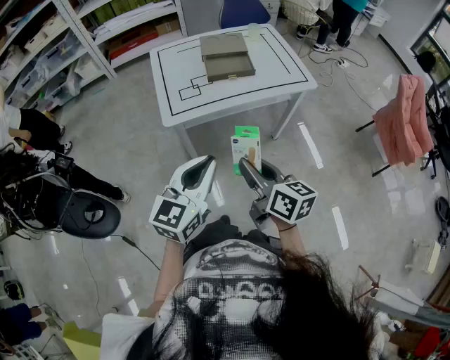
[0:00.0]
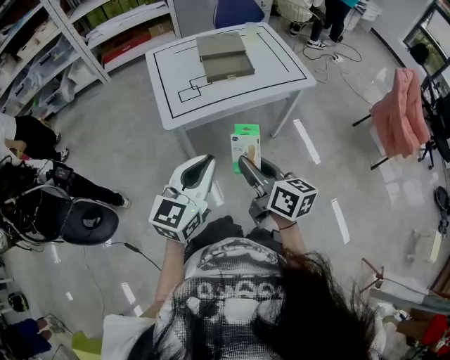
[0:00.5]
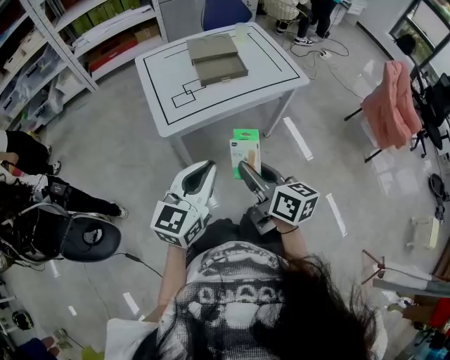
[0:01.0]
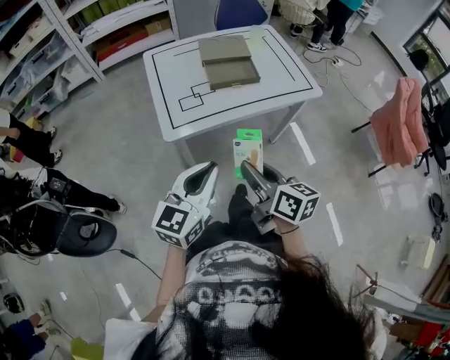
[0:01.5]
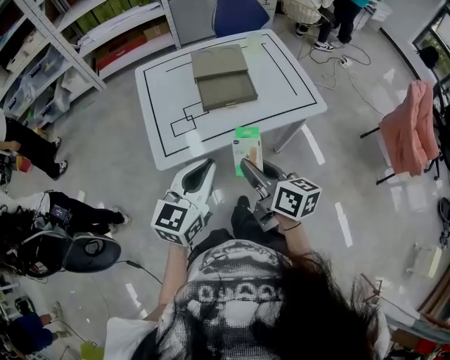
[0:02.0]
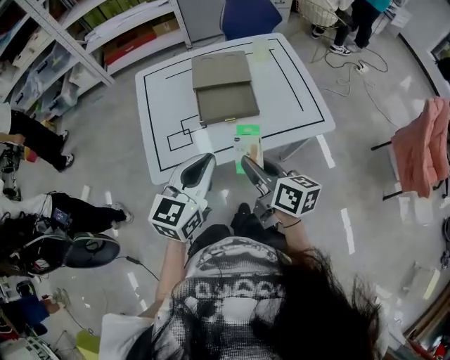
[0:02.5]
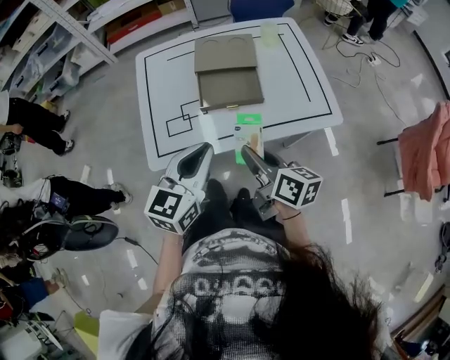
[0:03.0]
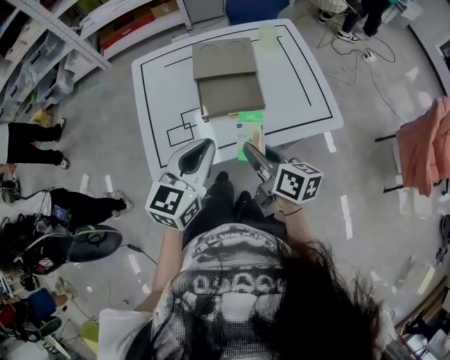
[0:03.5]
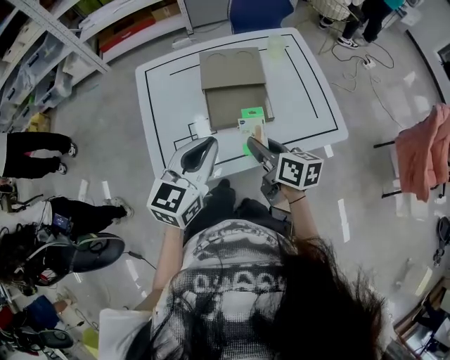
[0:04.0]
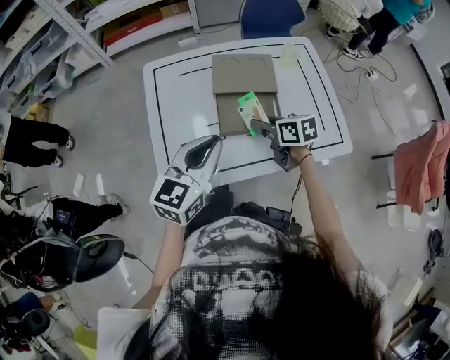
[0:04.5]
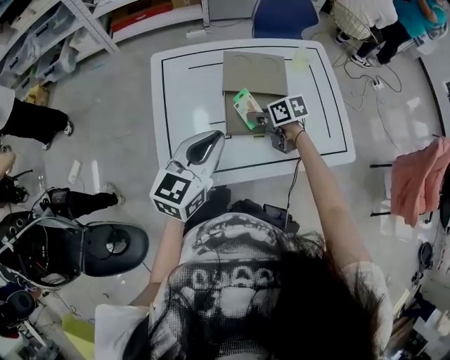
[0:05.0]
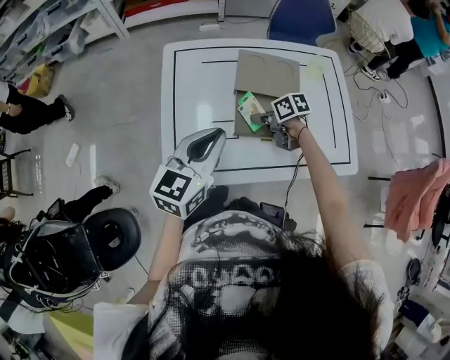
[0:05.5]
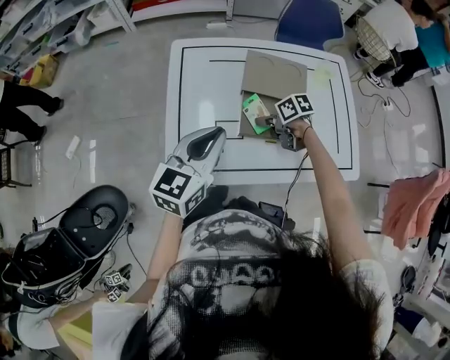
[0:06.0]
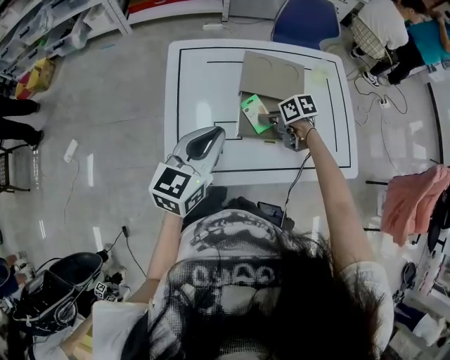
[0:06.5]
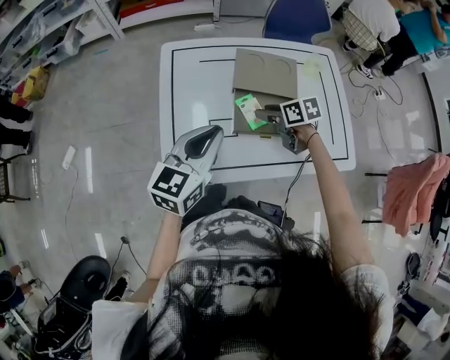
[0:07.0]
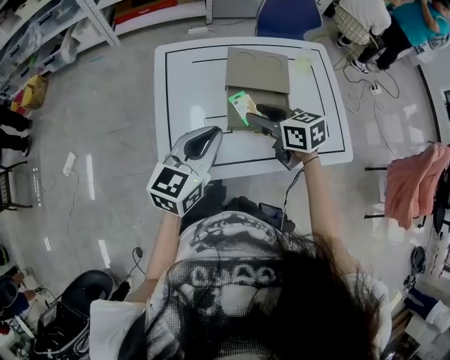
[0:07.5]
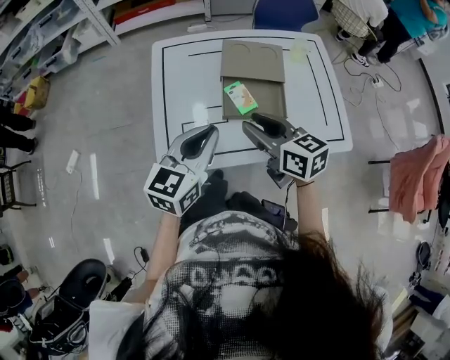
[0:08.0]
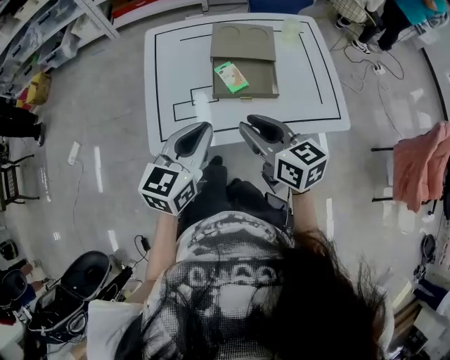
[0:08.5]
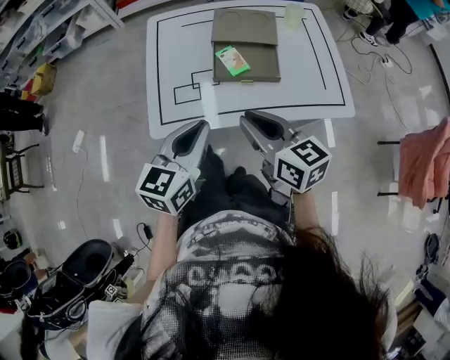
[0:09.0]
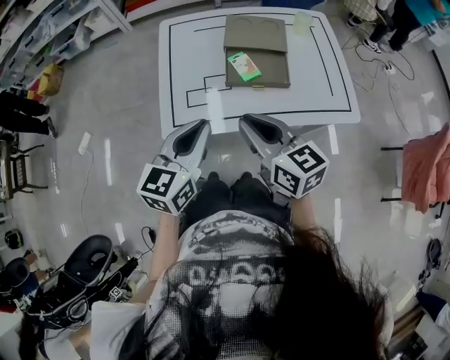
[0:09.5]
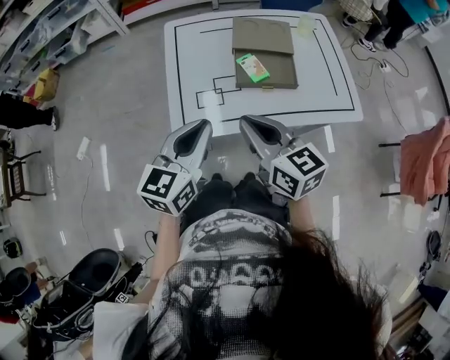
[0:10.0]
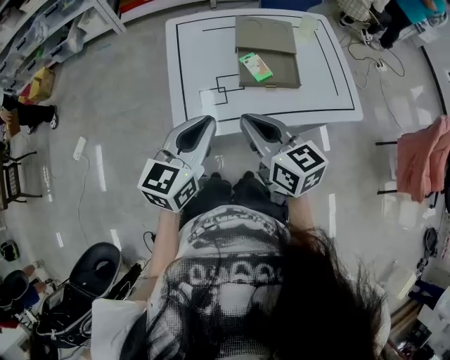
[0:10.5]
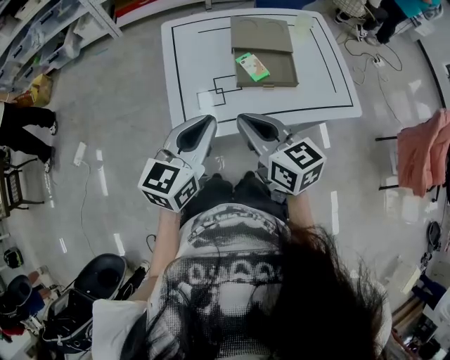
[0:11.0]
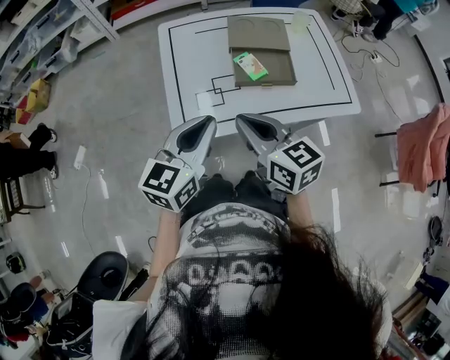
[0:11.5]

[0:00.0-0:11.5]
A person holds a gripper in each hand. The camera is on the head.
0:00.0 to 0:02.0: The grippers both shift forward by about 25 cm.
0:02.0 to 0:04.0: The grippers both shift forward by about 20 cm.
0:04.0 to 0:06.0: The left gripper moves about 10 cm; the right gripper shifts by approximately 25 cm, and changes its angle by about 50 degrees.
0:06.0 to 0:07.5: The right gripper moves upward, approximately 15 cm, turns by roughly 40 degrees, and opens its fingers.
0:07.5 to 0:09.5: The right gripper shifts roughly 20 cm backward and upward, and closes up. Meanwhile the left gripper moves backward, about 15 cm.
0:09.5 to 0:11.5: The grippers both shift to the left by roughly 5 cm.

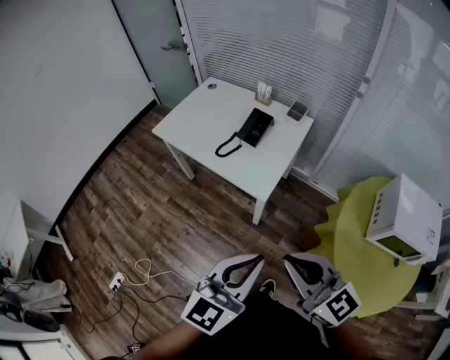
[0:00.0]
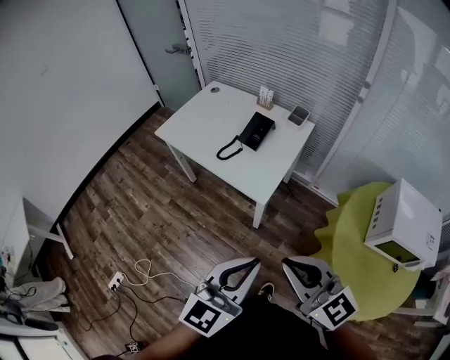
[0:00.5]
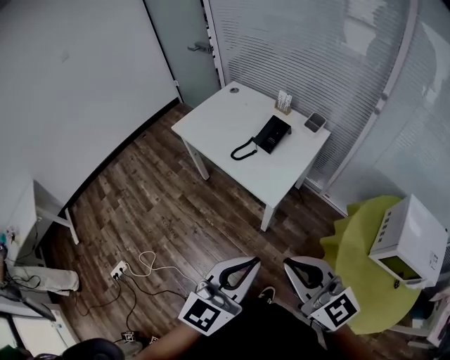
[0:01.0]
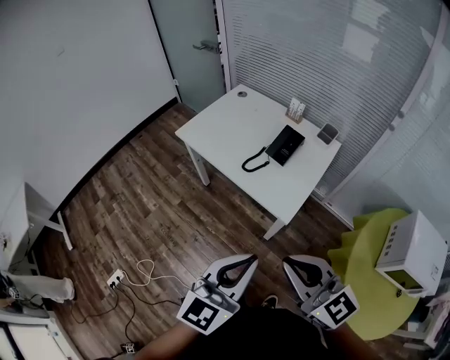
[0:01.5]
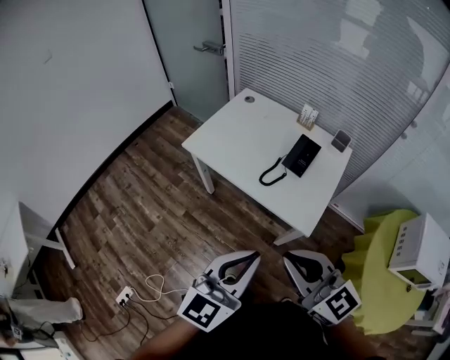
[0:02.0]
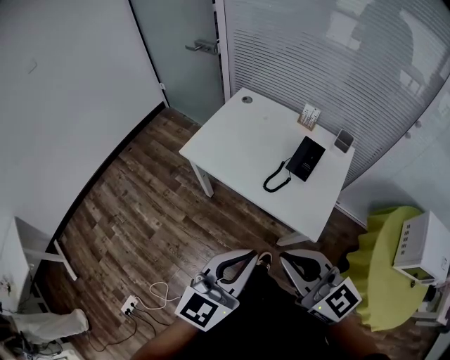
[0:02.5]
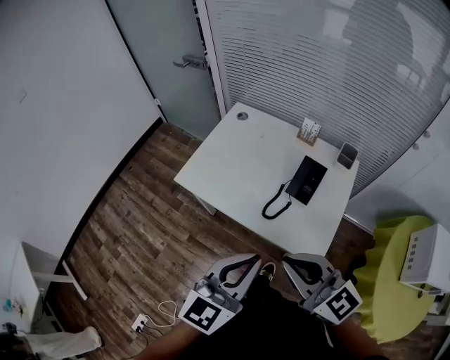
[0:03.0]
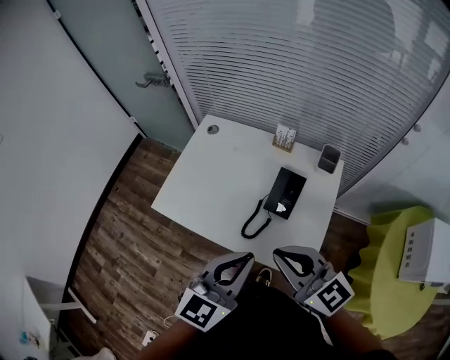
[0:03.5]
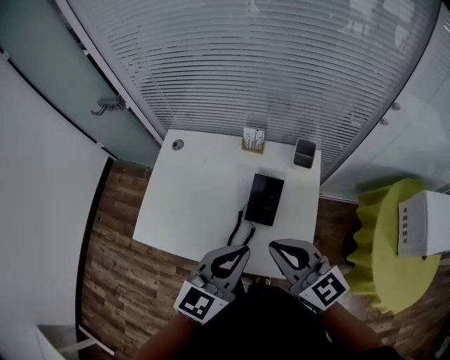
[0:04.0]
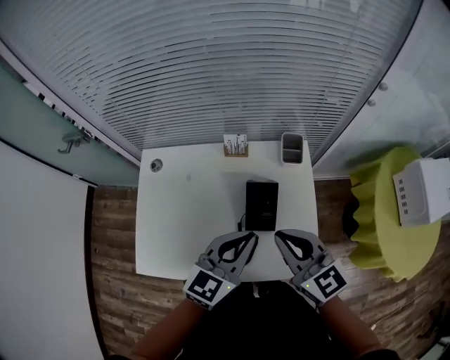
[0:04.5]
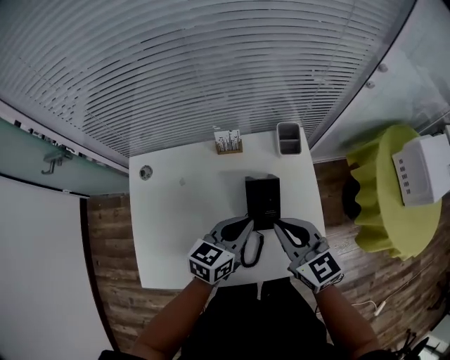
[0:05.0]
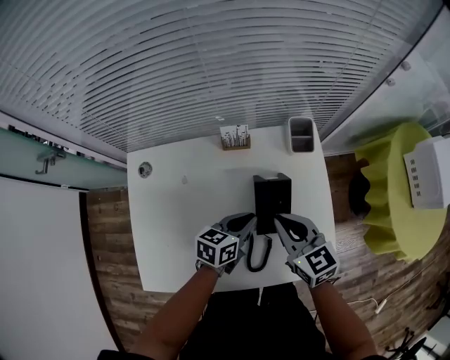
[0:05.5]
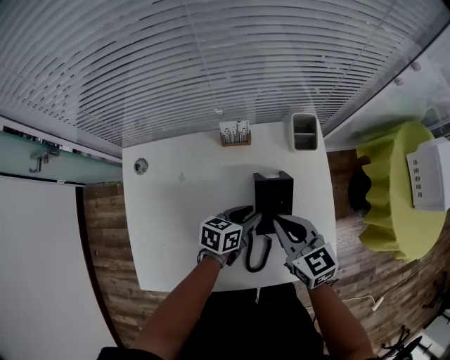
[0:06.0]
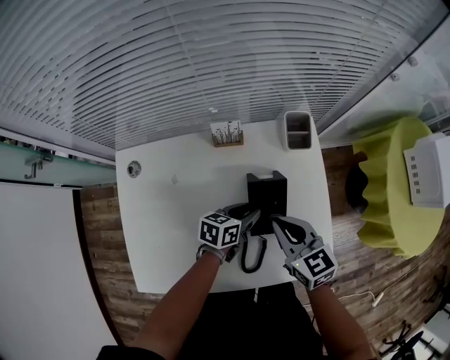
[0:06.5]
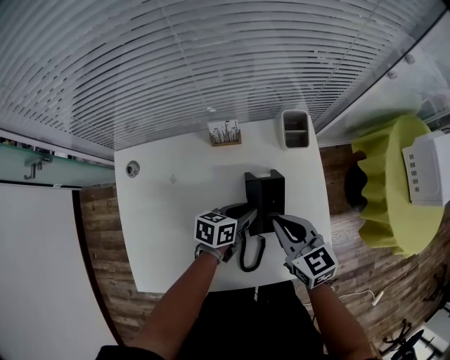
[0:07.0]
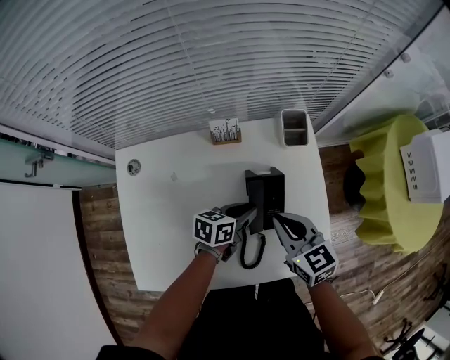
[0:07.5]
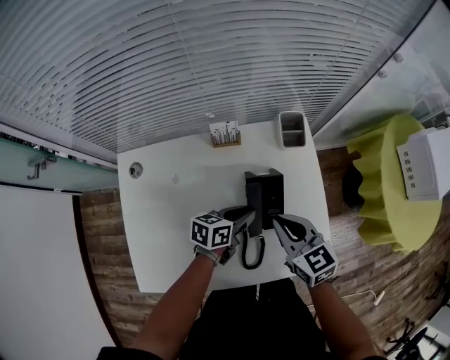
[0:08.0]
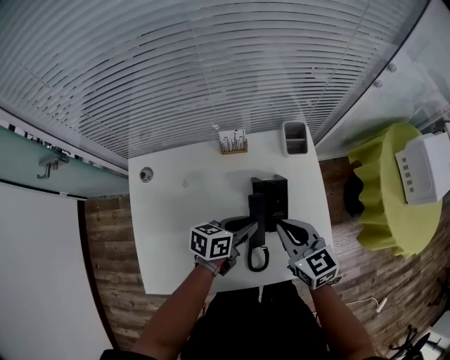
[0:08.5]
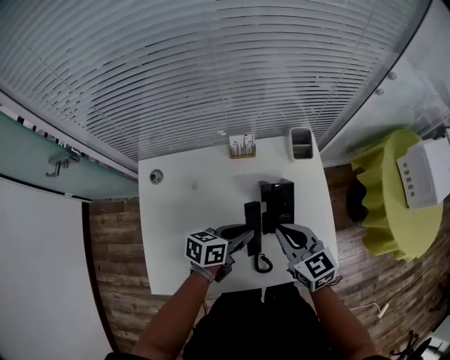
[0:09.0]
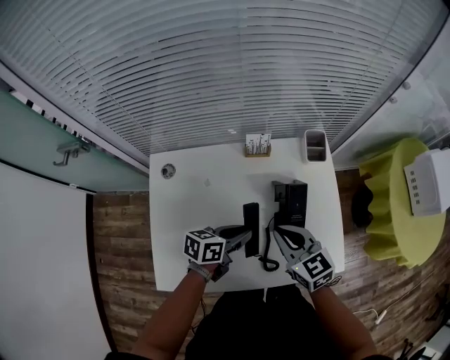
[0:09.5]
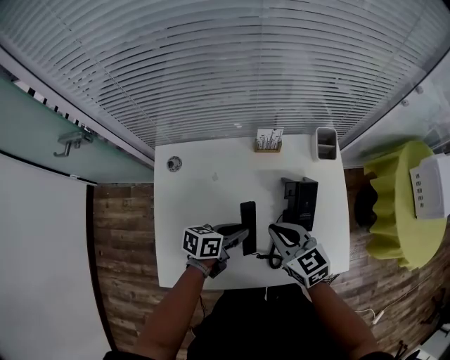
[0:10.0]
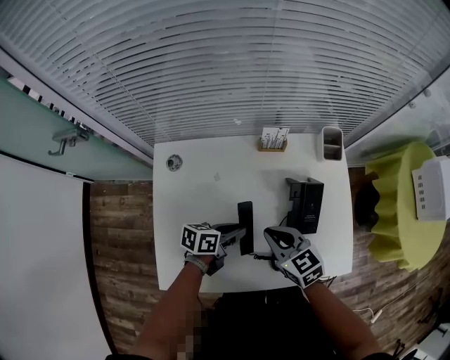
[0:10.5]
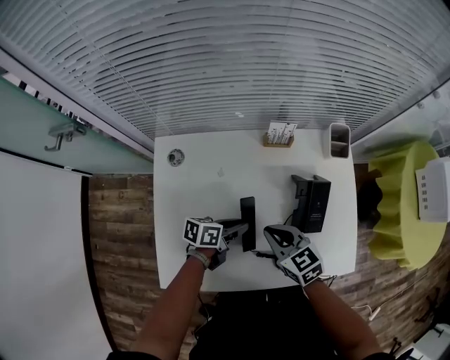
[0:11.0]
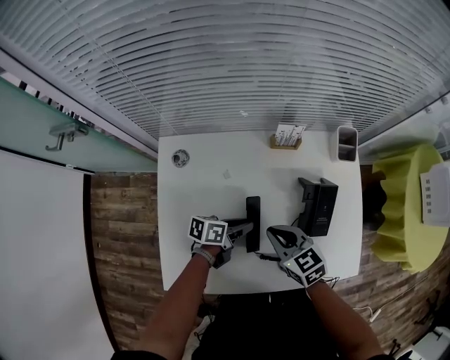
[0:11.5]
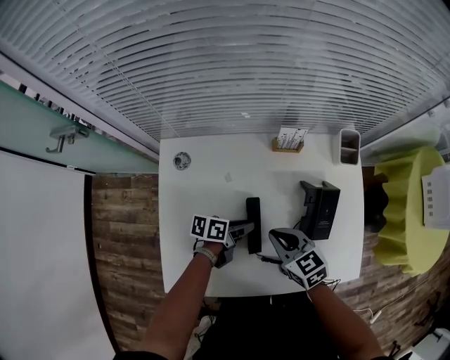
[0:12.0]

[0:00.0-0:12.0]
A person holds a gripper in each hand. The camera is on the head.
0:00.0 to 0:02.0: The two grippers go approximately 25 cm to the left and forward.
0:02.0 to 0:04.0: The two grippers go about 35 cm forward. The left gripper swivels roughly 20 degrees, while the right gripper rotates about 20 degrees.
0:04.0 to 0:06.0: The right gripper heads downward, covering some 20 cm, and changes its angle by approximately 30 degrees; the left gripper goes approximately 30 cm downward, turns by about 50 degrees, and opens its fingers.
0:06.0 to 0:08.0: There are only small adjustments of the grippers.
0:08.0 to 0:10.0: Both grippers move to the left and backward, about 15 cm.
0:10.0 to 0:12.0: Both grippers travel together downward, approximately 10 cm.

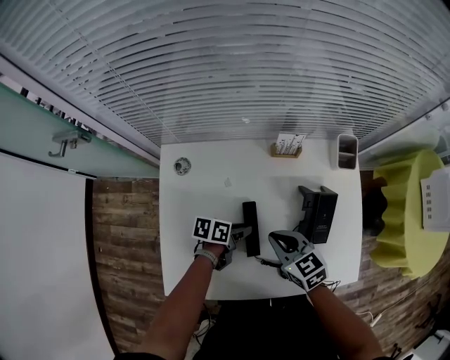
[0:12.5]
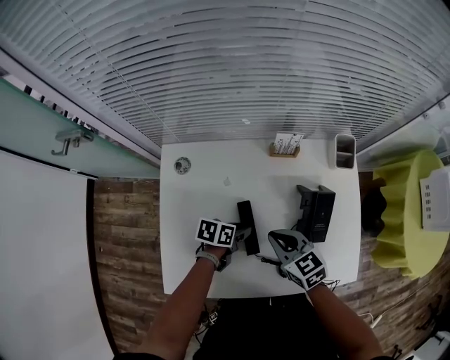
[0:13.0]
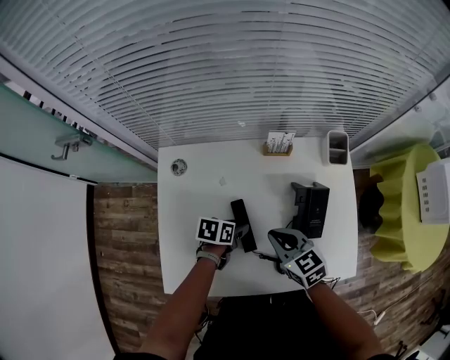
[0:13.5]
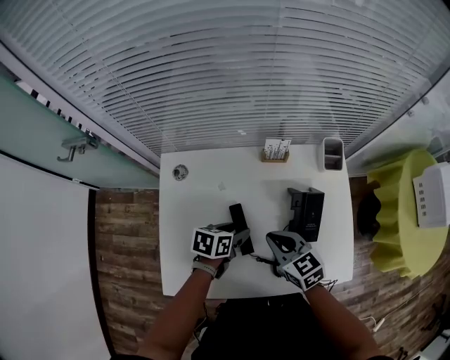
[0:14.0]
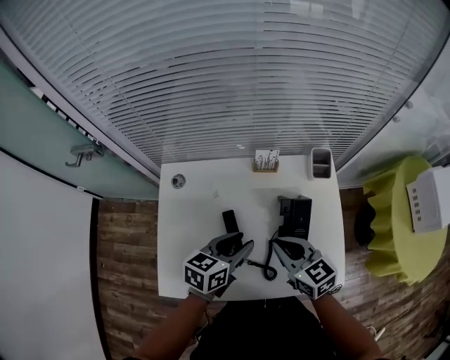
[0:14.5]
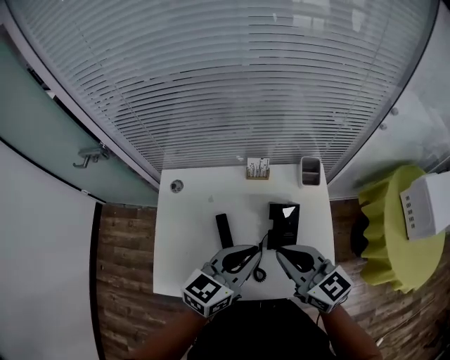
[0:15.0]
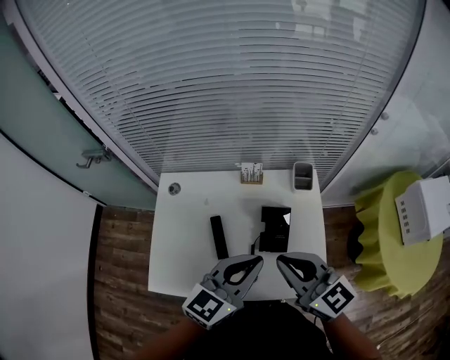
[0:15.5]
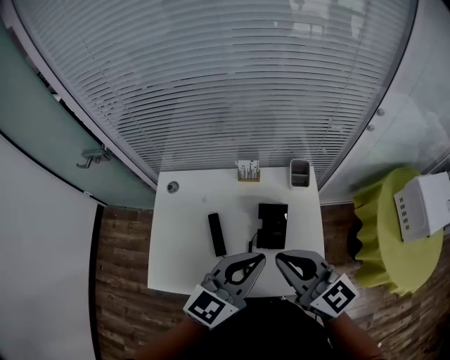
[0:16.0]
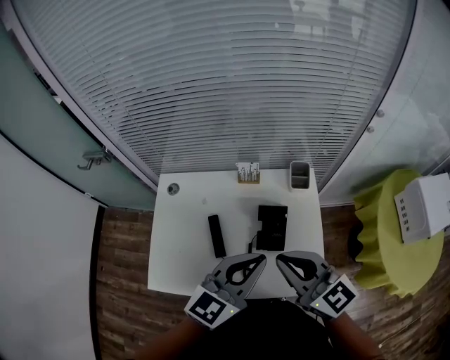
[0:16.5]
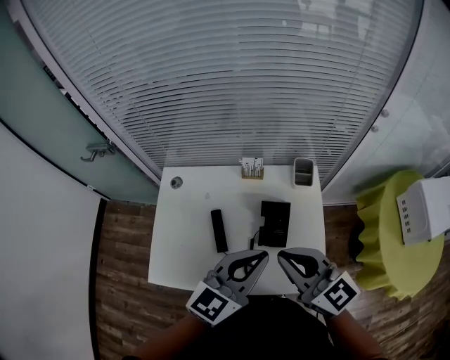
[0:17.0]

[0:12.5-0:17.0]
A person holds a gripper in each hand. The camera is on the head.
0:12.5 to 0:14.5: The left gripper goes roughly 20 cm upward, and changes its angle by about 40 degrees, while the right gripper goes about 15 cm upward and to the right.
0:14.5 to 0:17.0: Both grippers travel together upward, to the right and backward, approximately 20 cm. The right gripper rotates roughly 20 degrees. Meanwhile the left gripper swivels about 30 degrees, and closes.
